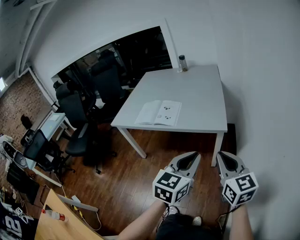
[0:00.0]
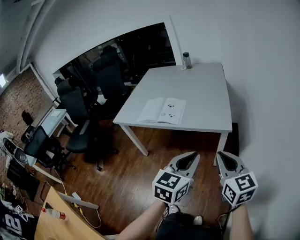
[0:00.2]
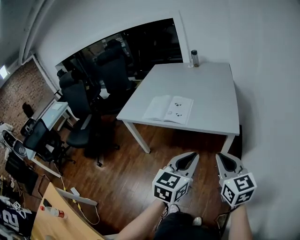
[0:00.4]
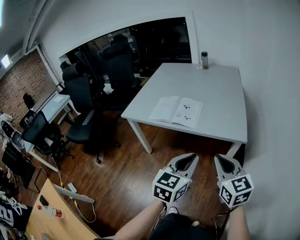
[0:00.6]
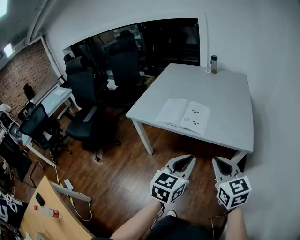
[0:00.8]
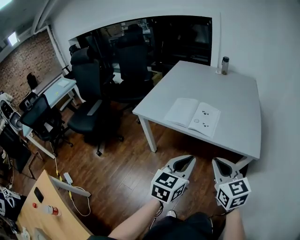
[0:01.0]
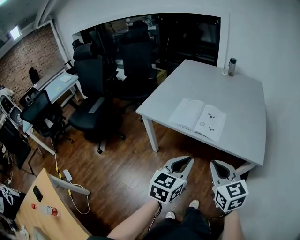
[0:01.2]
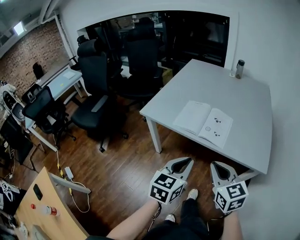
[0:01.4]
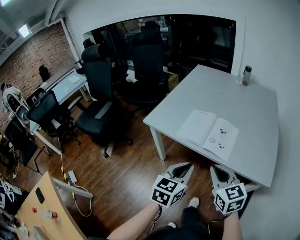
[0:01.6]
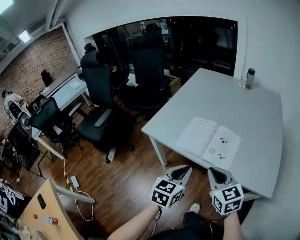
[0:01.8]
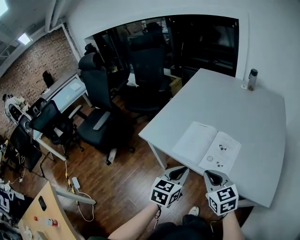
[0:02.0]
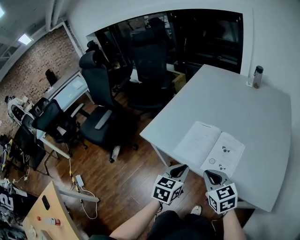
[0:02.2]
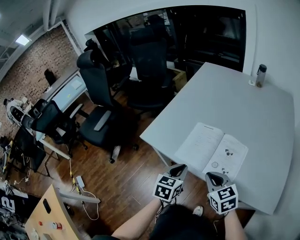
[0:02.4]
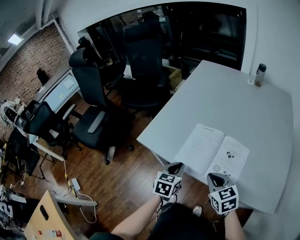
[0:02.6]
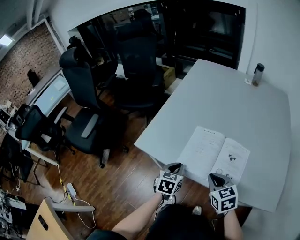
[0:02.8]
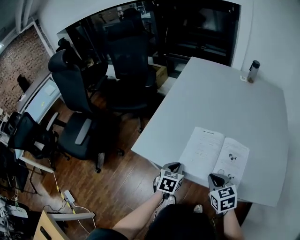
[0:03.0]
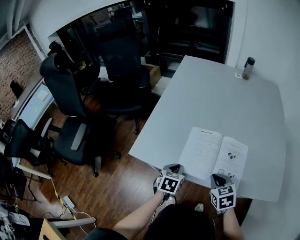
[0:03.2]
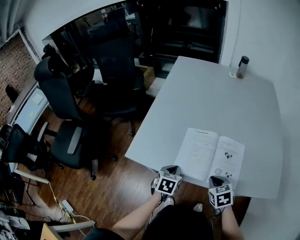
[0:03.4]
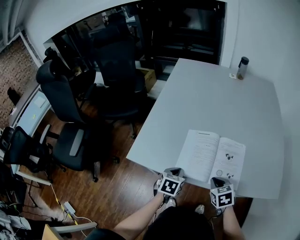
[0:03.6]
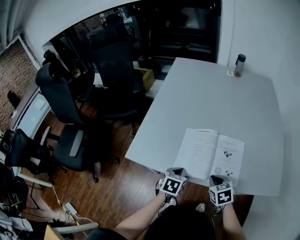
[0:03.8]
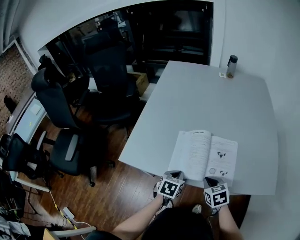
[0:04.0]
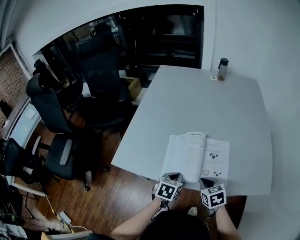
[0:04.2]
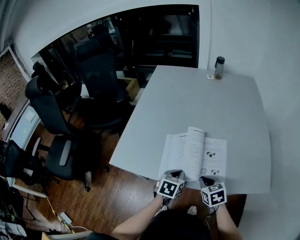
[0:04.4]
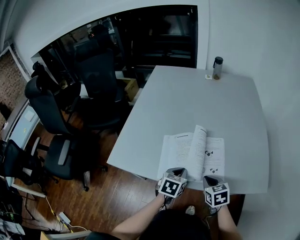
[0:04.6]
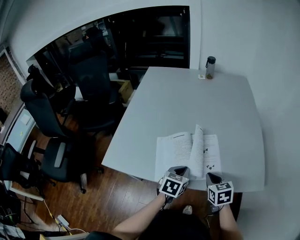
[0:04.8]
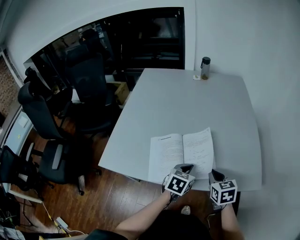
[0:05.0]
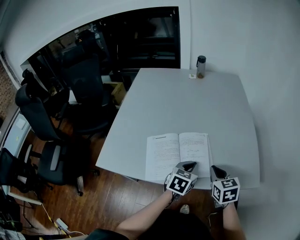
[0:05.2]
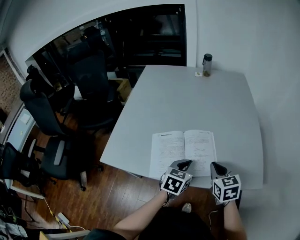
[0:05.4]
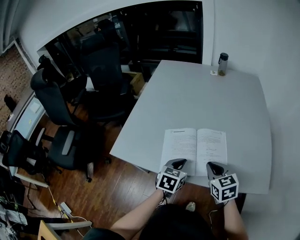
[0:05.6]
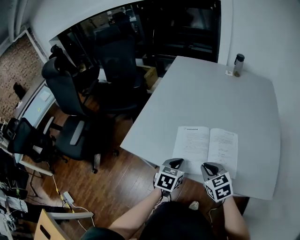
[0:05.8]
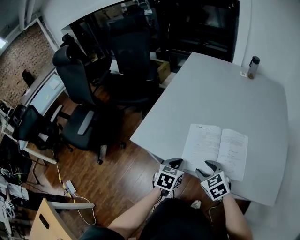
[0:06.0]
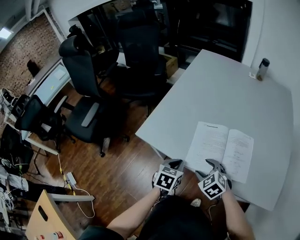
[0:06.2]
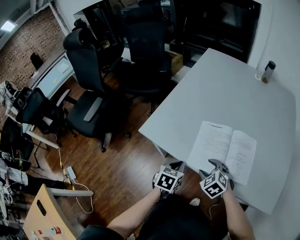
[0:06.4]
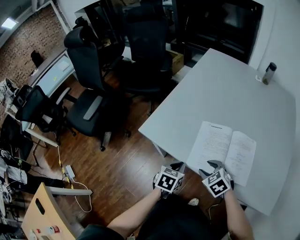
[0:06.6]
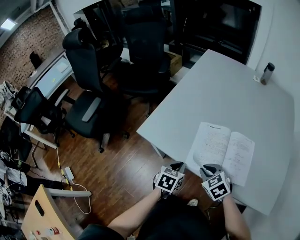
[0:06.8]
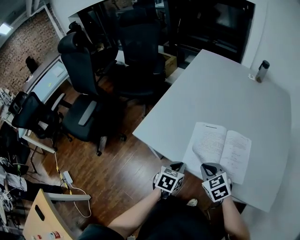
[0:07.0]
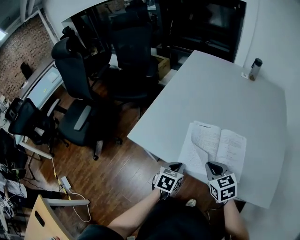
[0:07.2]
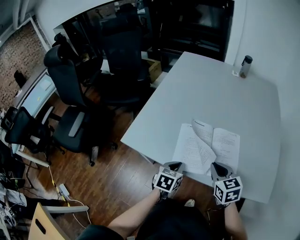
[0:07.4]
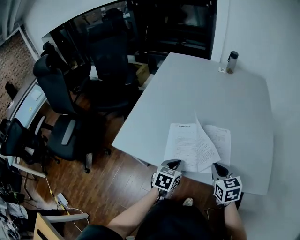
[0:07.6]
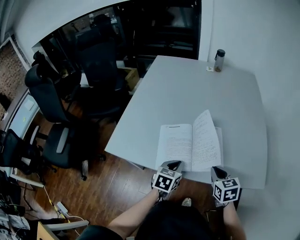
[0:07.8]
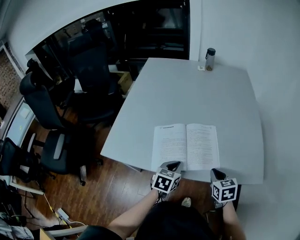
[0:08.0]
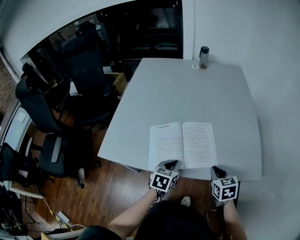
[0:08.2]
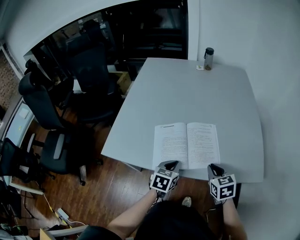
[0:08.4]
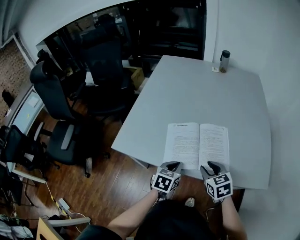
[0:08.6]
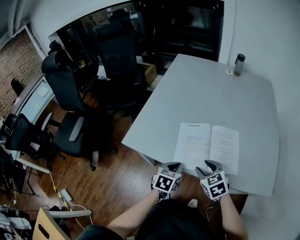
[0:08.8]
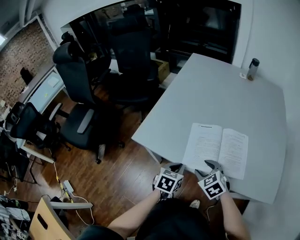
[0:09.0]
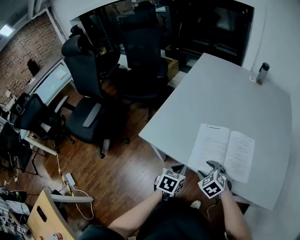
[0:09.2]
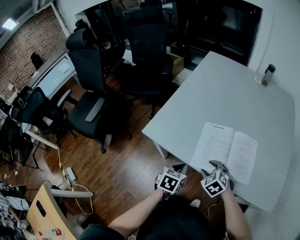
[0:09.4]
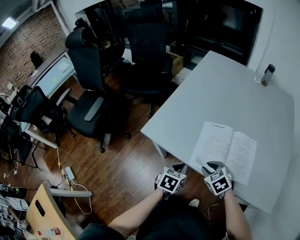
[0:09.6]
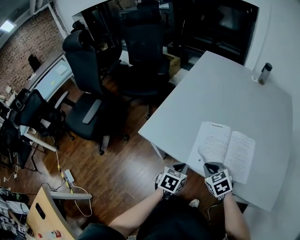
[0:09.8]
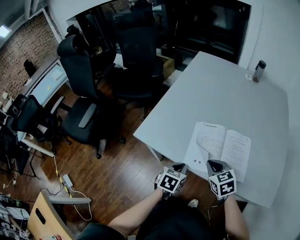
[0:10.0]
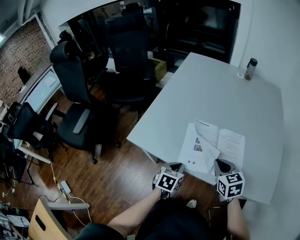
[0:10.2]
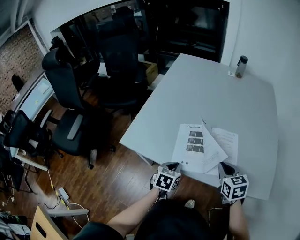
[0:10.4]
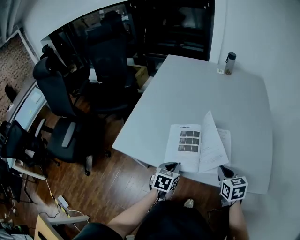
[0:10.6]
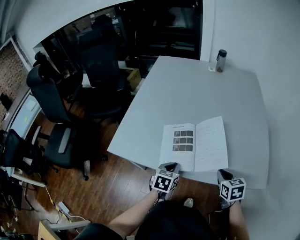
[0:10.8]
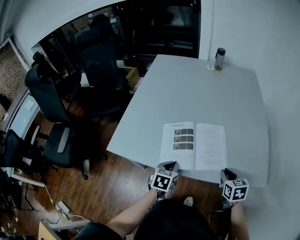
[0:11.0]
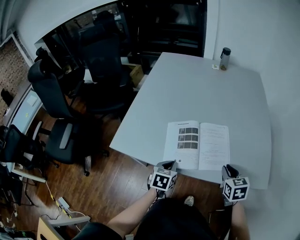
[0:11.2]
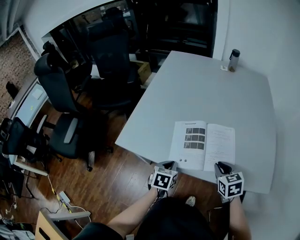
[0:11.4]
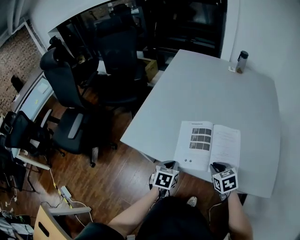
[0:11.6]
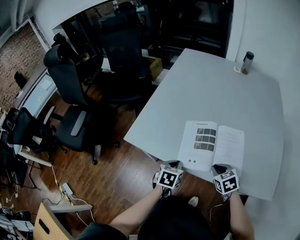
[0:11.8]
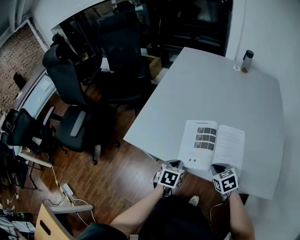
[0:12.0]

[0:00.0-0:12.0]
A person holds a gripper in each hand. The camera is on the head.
0:00.0 to 0:01.6: The grippers both shift to the left and forward by about 40 cm. The right gripper swivels about 20 degrees. Meanwhile the left gripper changes its angle by approximately 20 degrees.
0:01.6 to 0:03.0: Both grippers travel together forward and downward, some 30 cm. The left gripper turns by roughly 20 degrees. Meanwhile the right gripper swivels about 20 degrees.
0:03.0 to 0:04.4: The left gripper goes about 15 cm to the right, while the right gripper goes approximately 10 cm to the right.
0:04.4 to 0:06.0: The left gripper goes upward and returns, approximately 10 cm each way. The right gripper moves some 10 cm upward and comes back, turns by some 30 degrees, and opens up.
0:06.0 to 0:07.6: The left gripper is displaced to the right by approximately 5 cm. Meanwhile the right gripper is displaced to the right by approximately 15 cm, rotates some 30 degrees, and closes its fingers.
0:07.6 to 0:09.0: The left gripper goes roughly 5 cm to the left, while the right gripper is displaced to the left by some 15 cm, rotates approximately 30 degrees, and opens its fingers.
0:09.0 to 0:10.4: The right gripper shifts some 15 cm to the right, changes its angle by some 30 degrees, and closes its fingers.
0:10.4 to 0:12.0: The right gripper moves downward, approximately 10 cm, moves some 10 cm to the right and comes back, and rotates approximately 20 degrees.

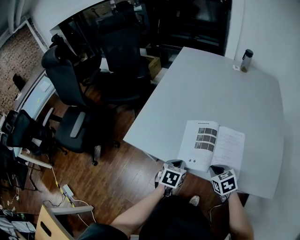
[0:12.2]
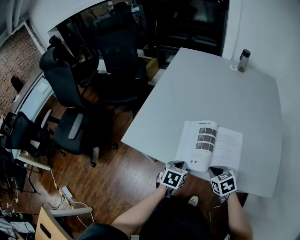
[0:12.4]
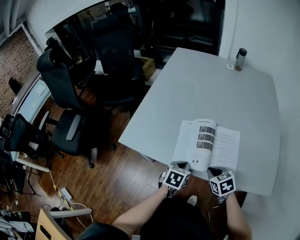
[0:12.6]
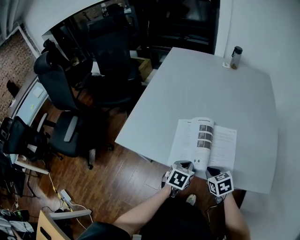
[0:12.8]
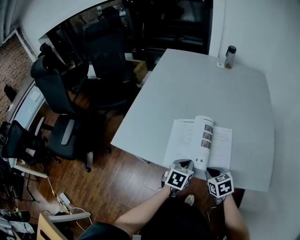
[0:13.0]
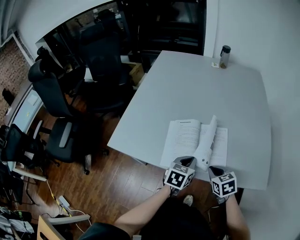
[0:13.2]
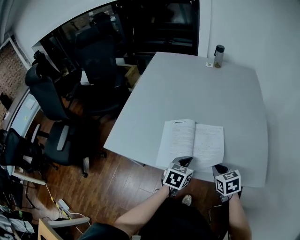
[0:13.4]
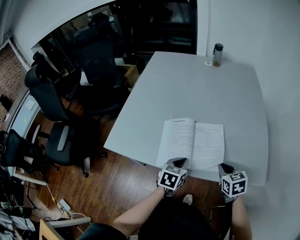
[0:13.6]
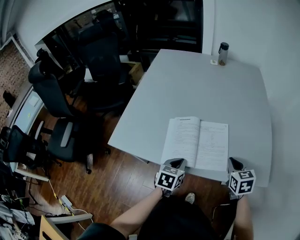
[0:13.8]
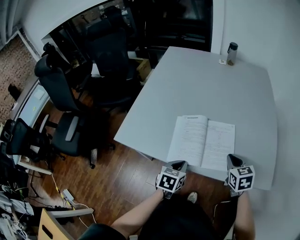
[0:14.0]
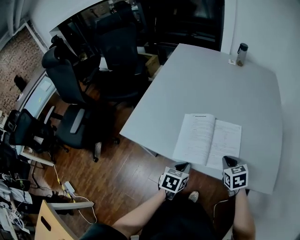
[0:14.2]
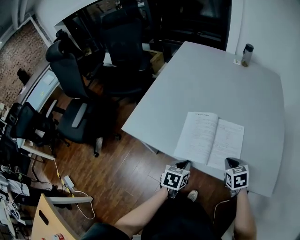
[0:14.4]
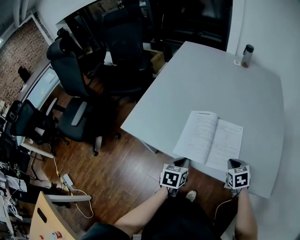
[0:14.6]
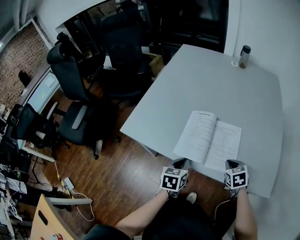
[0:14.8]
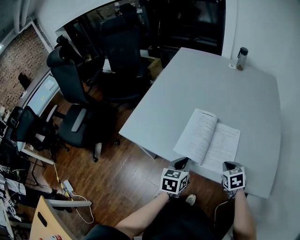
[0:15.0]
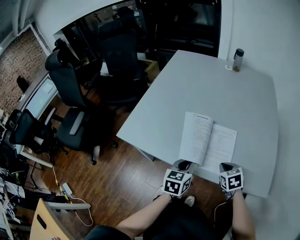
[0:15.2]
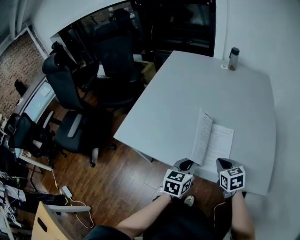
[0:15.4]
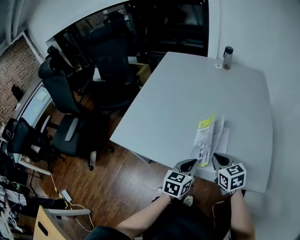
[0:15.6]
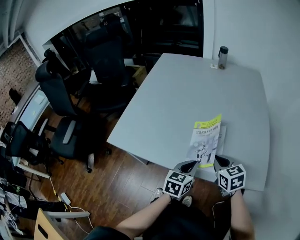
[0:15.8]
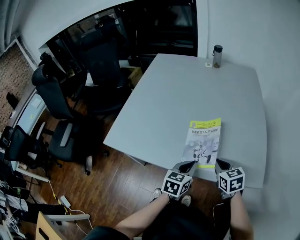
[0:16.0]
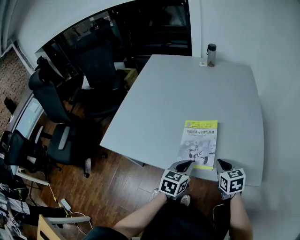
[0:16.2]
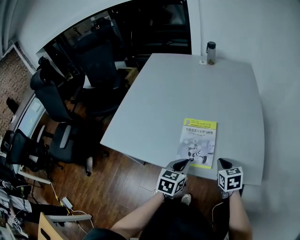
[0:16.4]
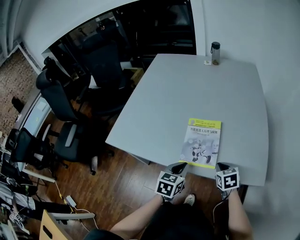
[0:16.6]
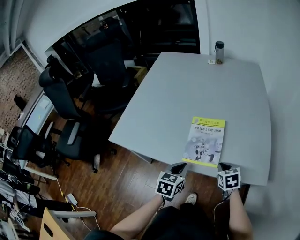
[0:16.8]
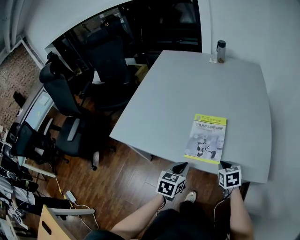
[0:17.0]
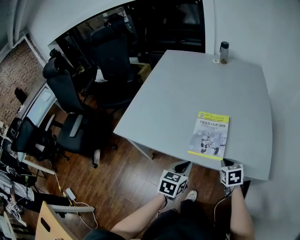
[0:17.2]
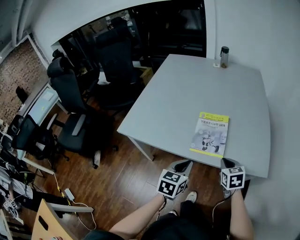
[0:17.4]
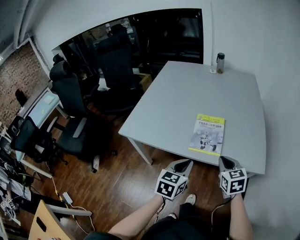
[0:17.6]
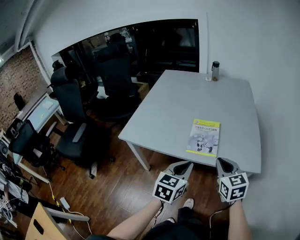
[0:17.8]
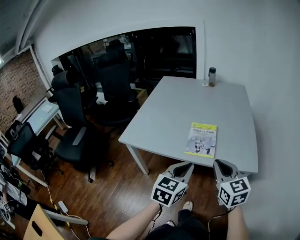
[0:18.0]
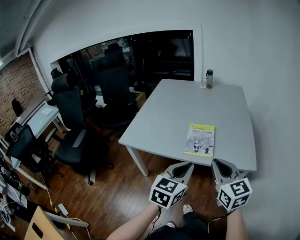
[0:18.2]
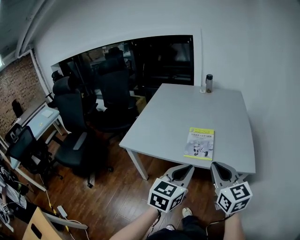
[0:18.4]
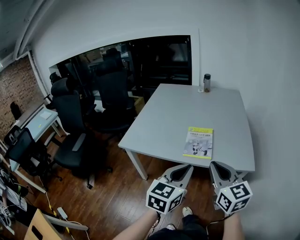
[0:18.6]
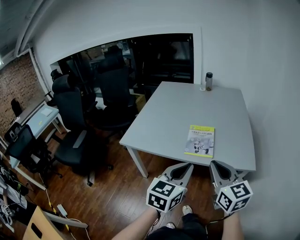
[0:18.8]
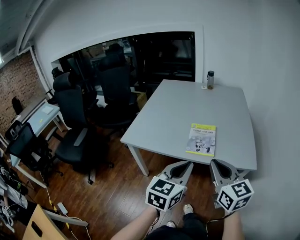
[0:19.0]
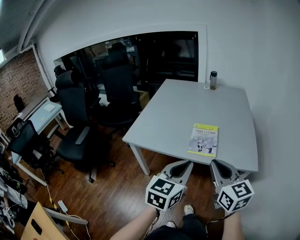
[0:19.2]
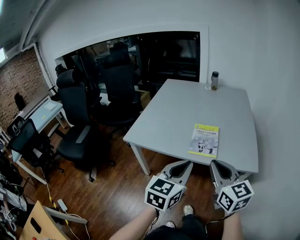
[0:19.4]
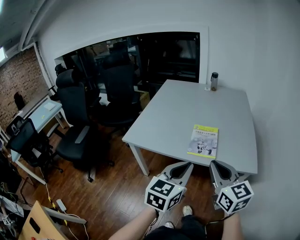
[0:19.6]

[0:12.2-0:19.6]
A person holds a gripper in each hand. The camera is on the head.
0:12.2 to 0:13.6: Both grippers move to the right, approximately 15 cm. The right gripper rotates about 20 degrees.
0:13.6 to 0:15.2: The right gripper moves downward, about 5 cm.
0:15.2 to 0:16.6: Both grippers travel together to the right, approximately 5 cm.
0:16.6 to 0:18.2: Both grippers travel together upward and backward, about 30 cm. The left gripper turns by roughly 20 degrees. Meanwhile the right gripper points its fingers some 40 degrees further upward.
0:18.2 to 0:19.6: The grippers stay close to where they were, moving slightly.

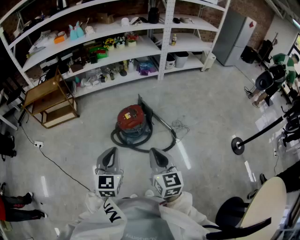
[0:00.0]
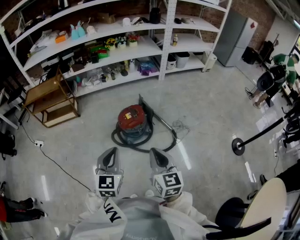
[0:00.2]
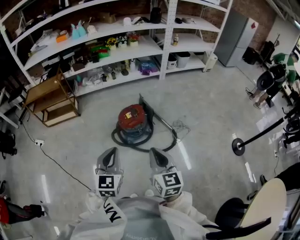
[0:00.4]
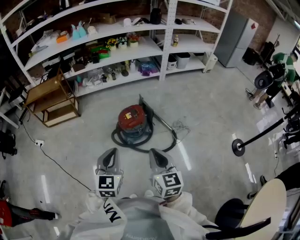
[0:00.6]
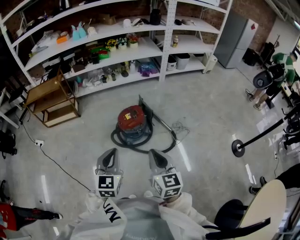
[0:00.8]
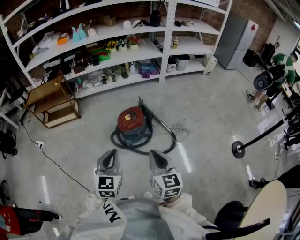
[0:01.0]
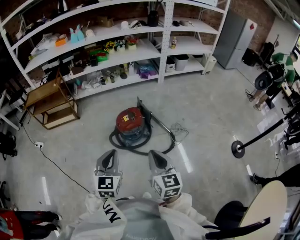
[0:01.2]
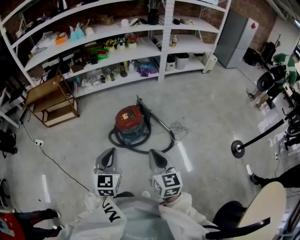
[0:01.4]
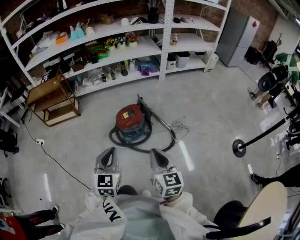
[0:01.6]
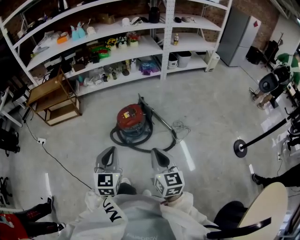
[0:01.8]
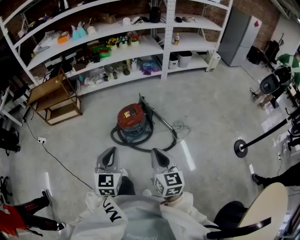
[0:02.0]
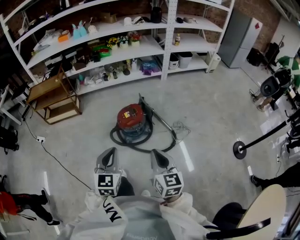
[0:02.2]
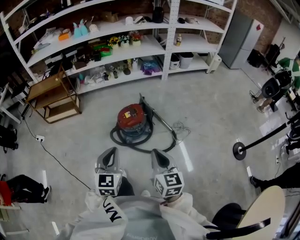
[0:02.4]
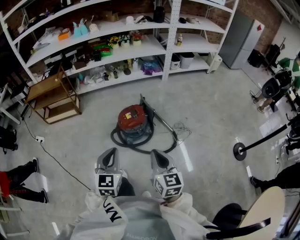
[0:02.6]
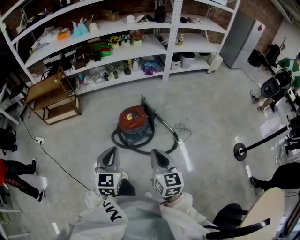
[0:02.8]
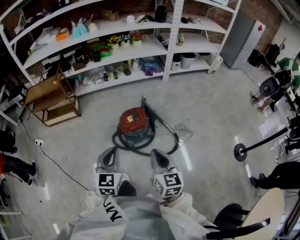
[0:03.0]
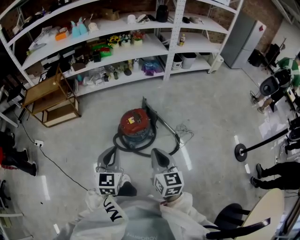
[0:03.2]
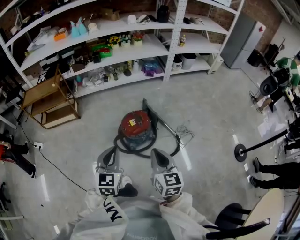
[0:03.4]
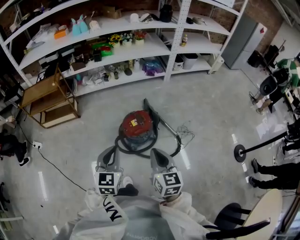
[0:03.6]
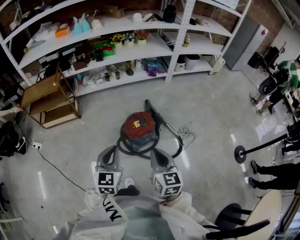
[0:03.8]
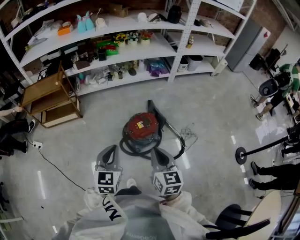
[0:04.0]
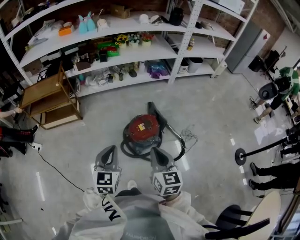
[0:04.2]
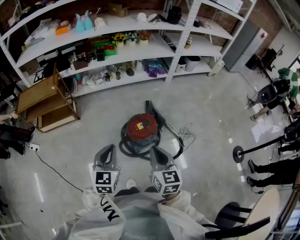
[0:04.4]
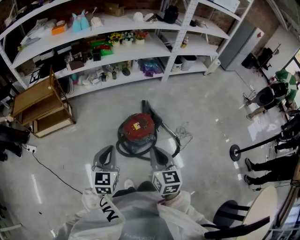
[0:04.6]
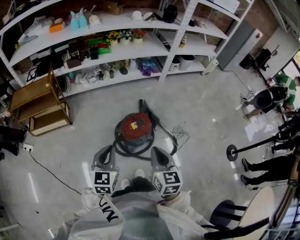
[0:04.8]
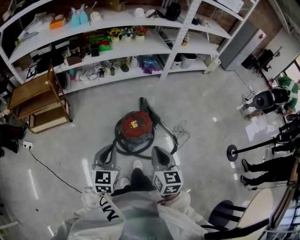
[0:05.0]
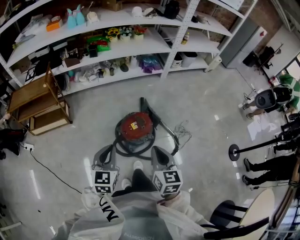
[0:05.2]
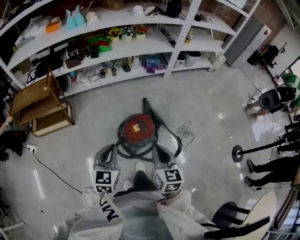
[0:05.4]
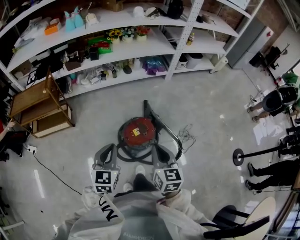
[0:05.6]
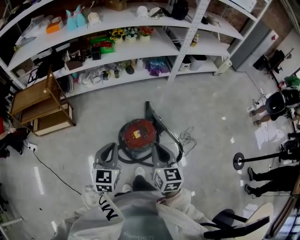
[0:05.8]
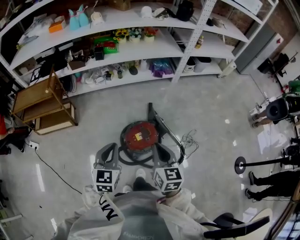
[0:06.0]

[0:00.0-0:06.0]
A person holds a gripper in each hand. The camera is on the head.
0:00.0 to 0:01.6: There are only small adjustments of the grippers.
0:01.6 to 0:03.0: The grippers both shift forward by about 5 cm.
0:03.0 to 0:04.4: Both grippers travel together to the left and forward, about 15 cm.
0:04.4 to 0:06.0: The two grippers go some 15 cm forward.
